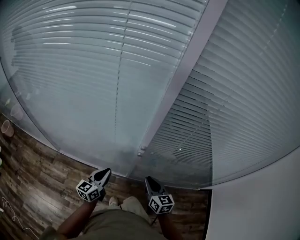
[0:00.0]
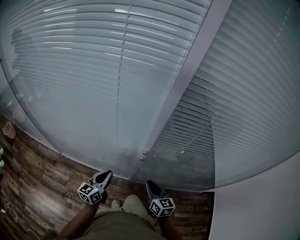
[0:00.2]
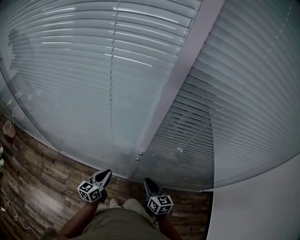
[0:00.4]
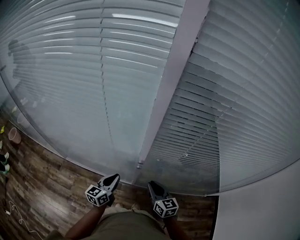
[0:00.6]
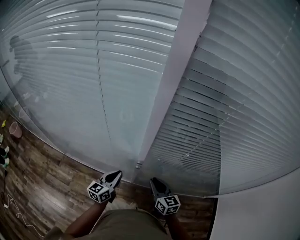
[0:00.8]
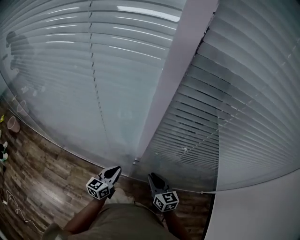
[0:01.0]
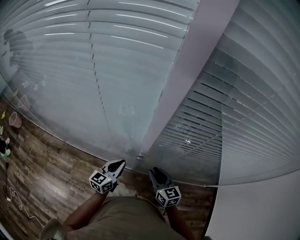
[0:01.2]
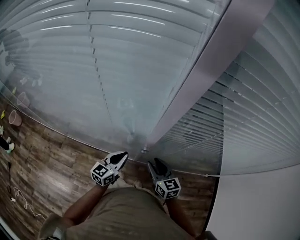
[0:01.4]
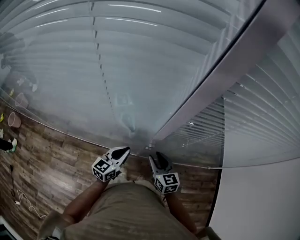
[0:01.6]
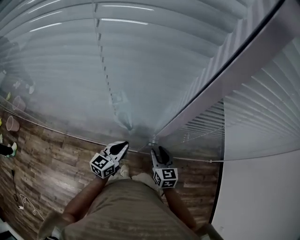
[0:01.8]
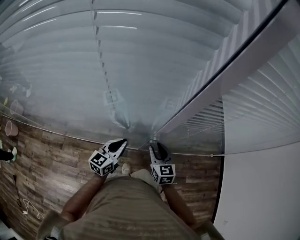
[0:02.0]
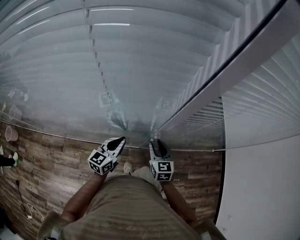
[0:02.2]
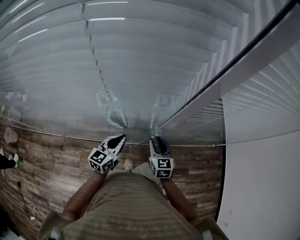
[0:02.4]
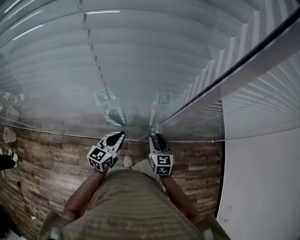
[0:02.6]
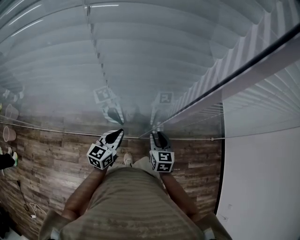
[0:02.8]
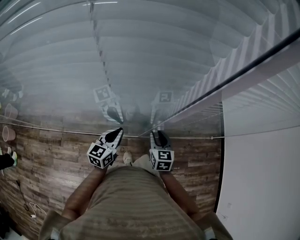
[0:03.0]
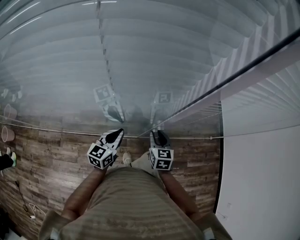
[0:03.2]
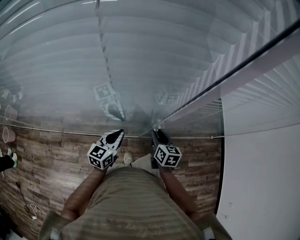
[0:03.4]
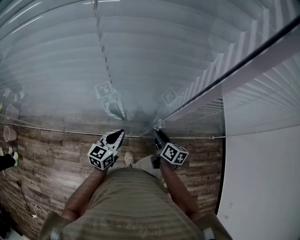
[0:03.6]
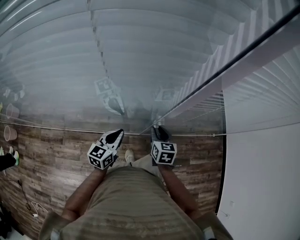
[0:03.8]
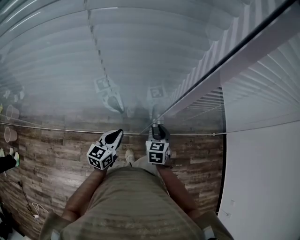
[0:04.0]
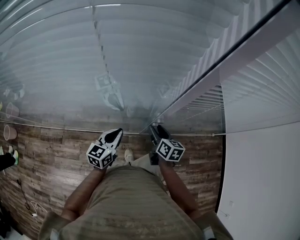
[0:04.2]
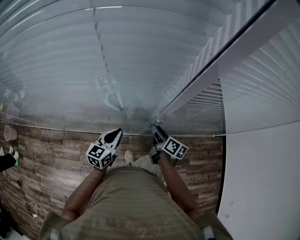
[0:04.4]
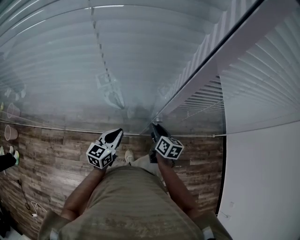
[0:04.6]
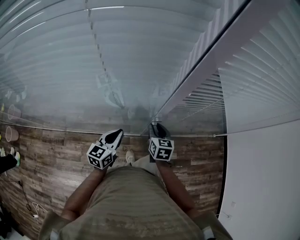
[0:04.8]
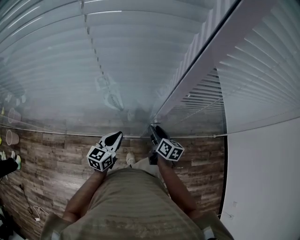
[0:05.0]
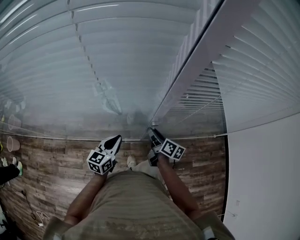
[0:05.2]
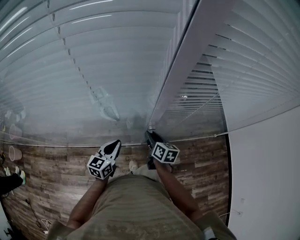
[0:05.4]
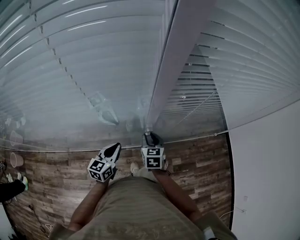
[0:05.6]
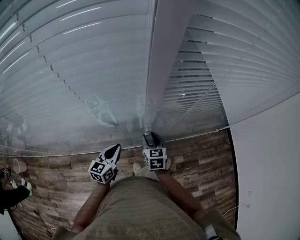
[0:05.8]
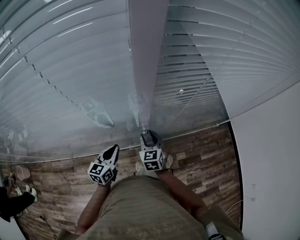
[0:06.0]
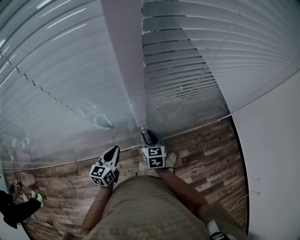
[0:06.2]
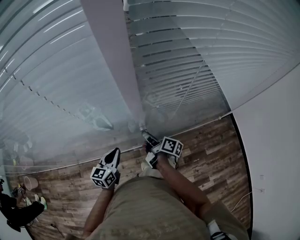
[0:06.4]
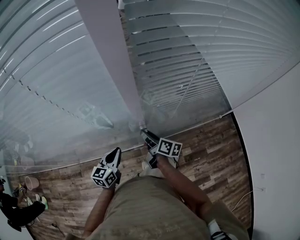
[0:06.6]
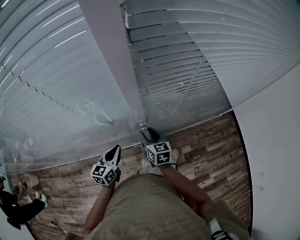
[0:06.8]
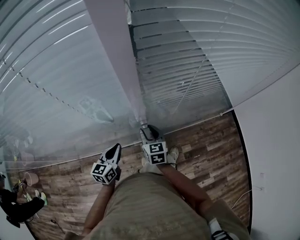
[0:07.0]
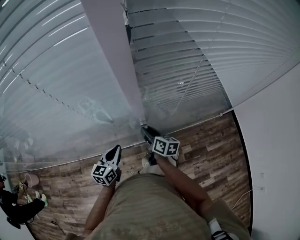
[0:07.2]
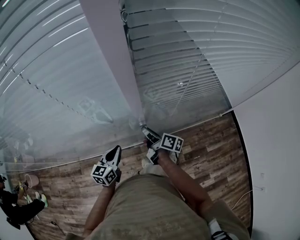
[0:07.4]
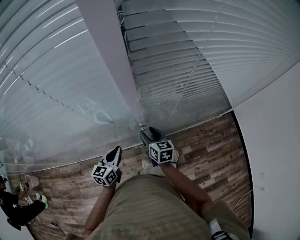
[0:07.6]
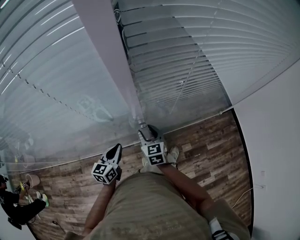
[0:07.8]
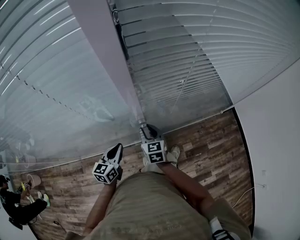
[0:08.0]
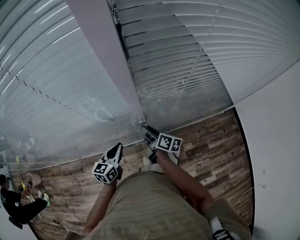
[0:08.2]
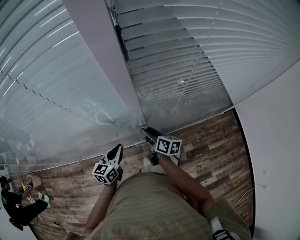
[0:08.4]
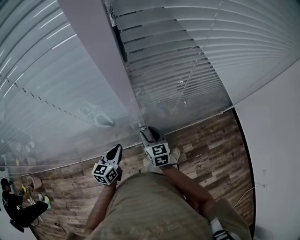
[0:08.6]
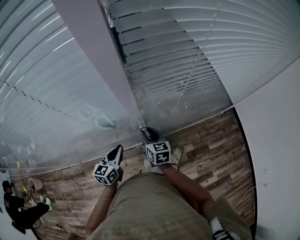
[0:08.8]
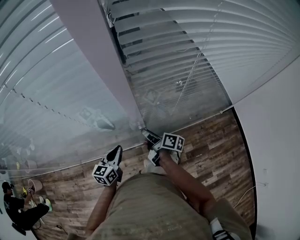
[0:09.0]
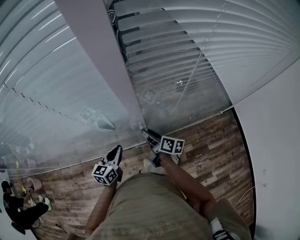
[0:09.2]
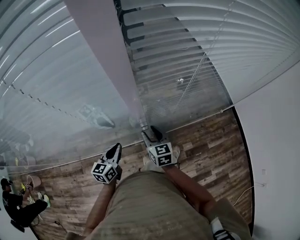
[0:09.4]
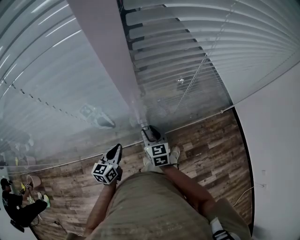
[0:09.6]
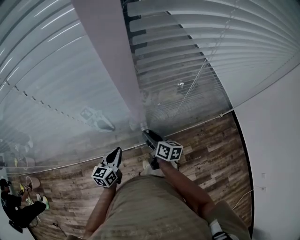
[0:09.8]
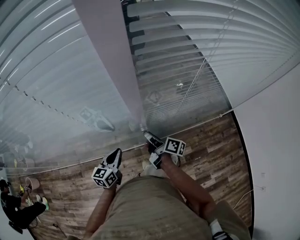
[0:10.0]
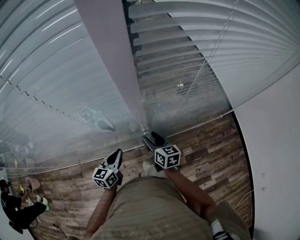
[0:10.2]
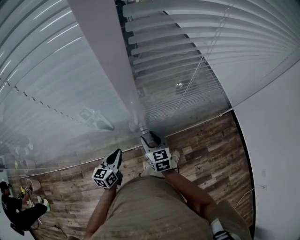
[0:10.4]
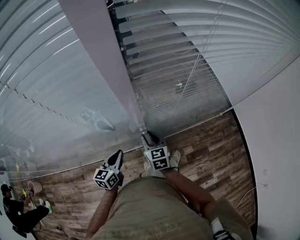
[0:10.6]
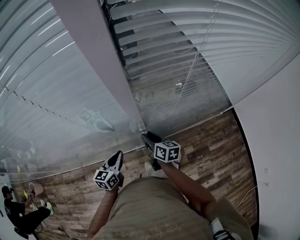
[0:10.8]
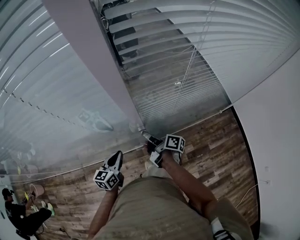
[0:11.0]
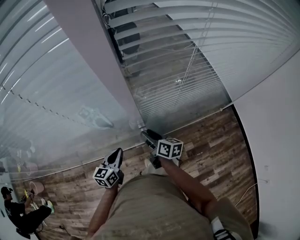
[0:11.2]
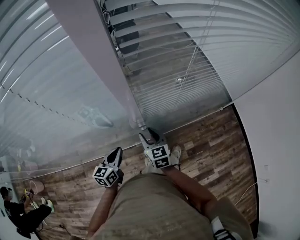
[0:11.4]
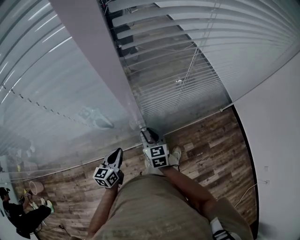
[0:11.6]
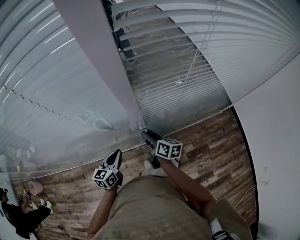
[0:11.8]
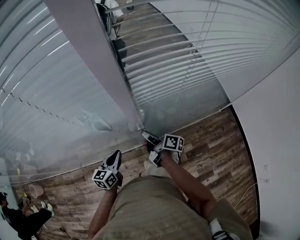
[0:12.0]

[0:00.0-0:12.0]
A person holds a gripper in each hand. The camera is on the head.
0:00.0 to 0:01.6: The two grippers go approximately 10 cm forward.
0:01.6 to 0:03.0: The left gripper is displaced forward and downward by some 10 cm. The right gripper is displaced downward and forward by some 10 cm, and rotates some 20 degrees.
0:03.0 to 0:04.4: The left gripper moves backward, roughly 5 cm. Meanwhile the right gripper twists about 50 degrees clockwise, seen from behind.
0:04.4 to 0:06.0: The right gripper rotates around the line of its fingers by about 50 degrees, counterclockwise from behind.
0:06.0 to 0:07.6: The right gripper rotates about 30 degrees.
0:07.6 to 0:09.0: The right gripper twists about 50 degrees clockwise, seen from behind.
0:09.0 to 0:10.4: The right gripper twists about 60 degrees counterclockwise, seen from behind.
0:10.4 to 0:12.0: The right gripper rolls clockwise, seen from behind, by about 60 degrees.

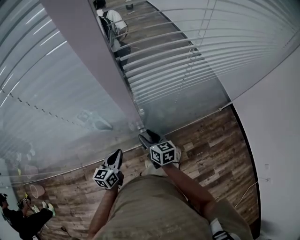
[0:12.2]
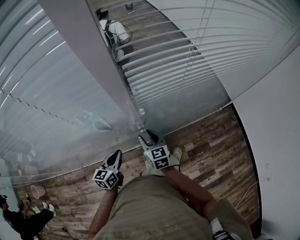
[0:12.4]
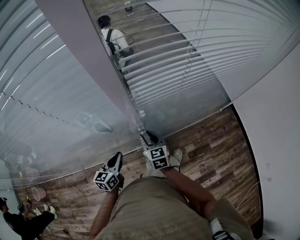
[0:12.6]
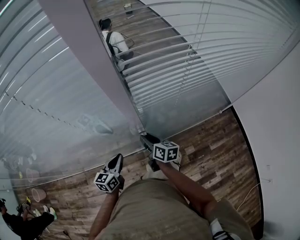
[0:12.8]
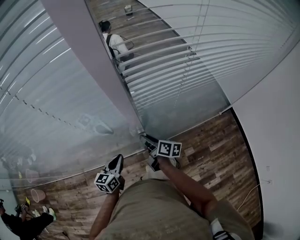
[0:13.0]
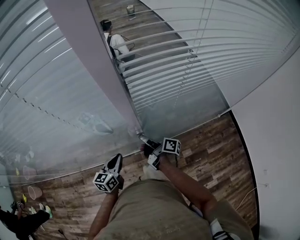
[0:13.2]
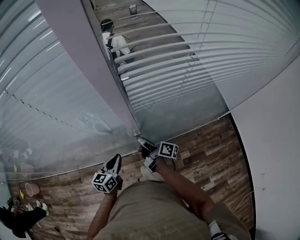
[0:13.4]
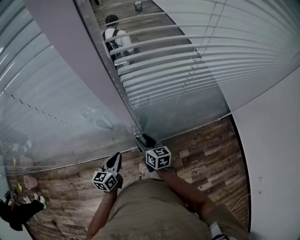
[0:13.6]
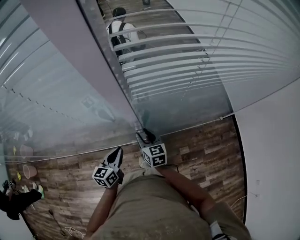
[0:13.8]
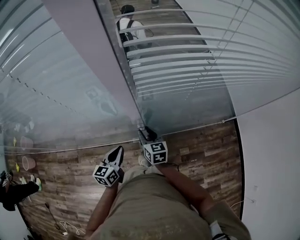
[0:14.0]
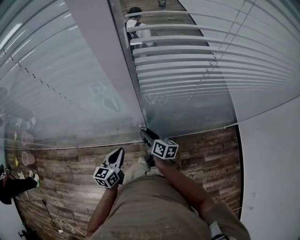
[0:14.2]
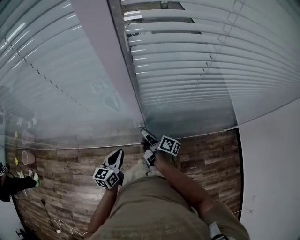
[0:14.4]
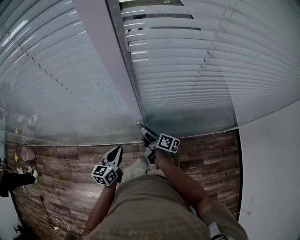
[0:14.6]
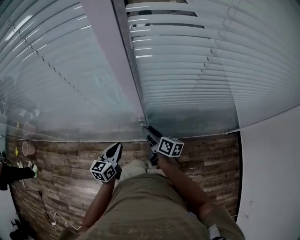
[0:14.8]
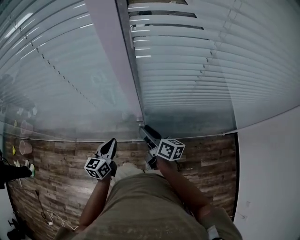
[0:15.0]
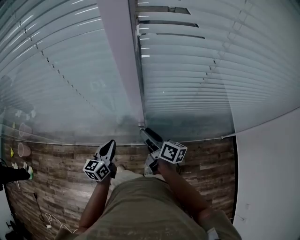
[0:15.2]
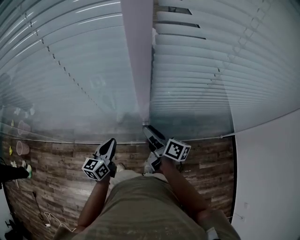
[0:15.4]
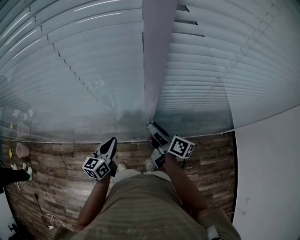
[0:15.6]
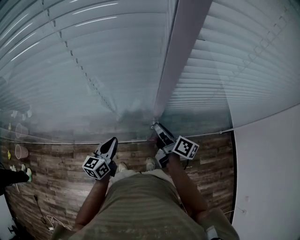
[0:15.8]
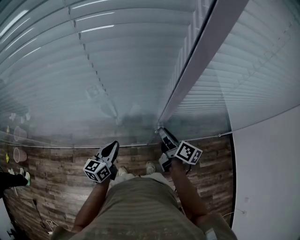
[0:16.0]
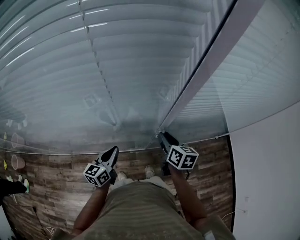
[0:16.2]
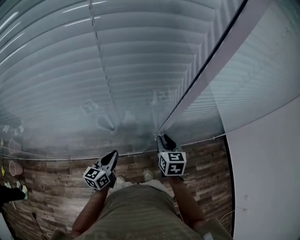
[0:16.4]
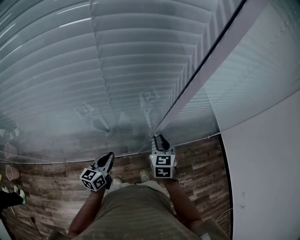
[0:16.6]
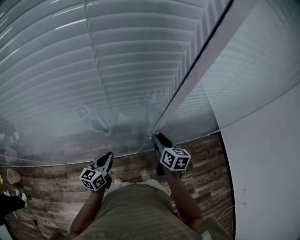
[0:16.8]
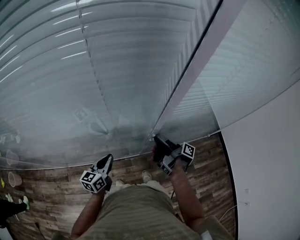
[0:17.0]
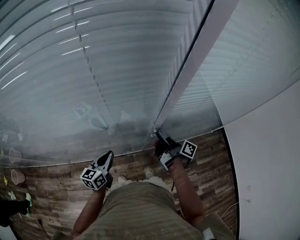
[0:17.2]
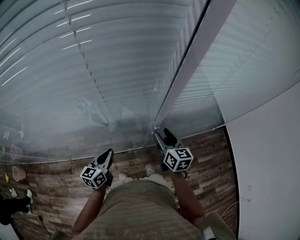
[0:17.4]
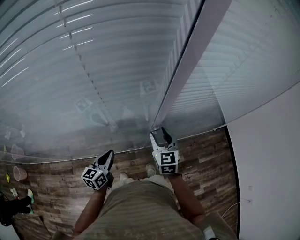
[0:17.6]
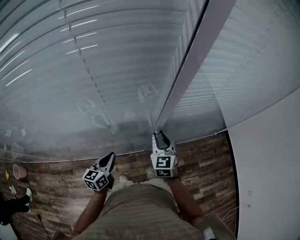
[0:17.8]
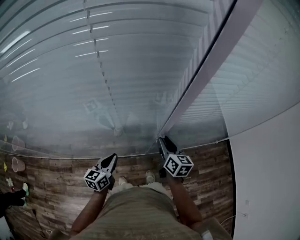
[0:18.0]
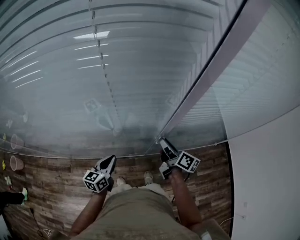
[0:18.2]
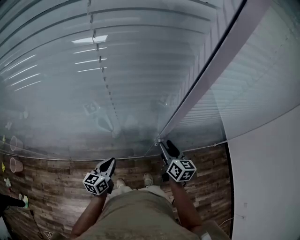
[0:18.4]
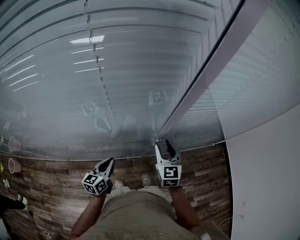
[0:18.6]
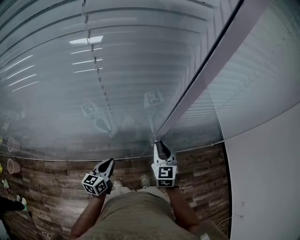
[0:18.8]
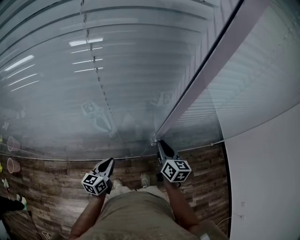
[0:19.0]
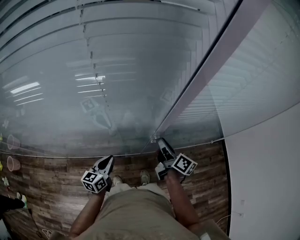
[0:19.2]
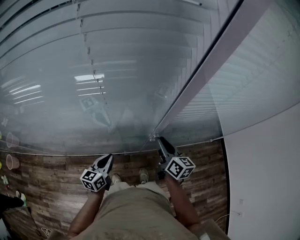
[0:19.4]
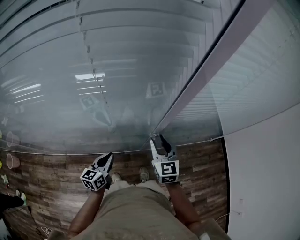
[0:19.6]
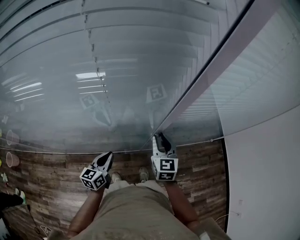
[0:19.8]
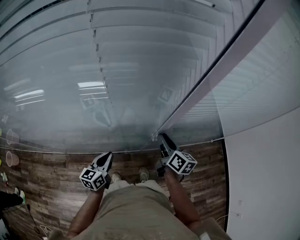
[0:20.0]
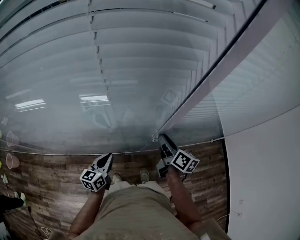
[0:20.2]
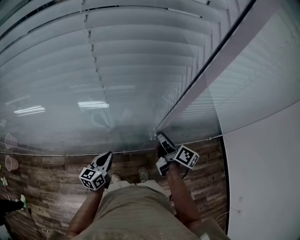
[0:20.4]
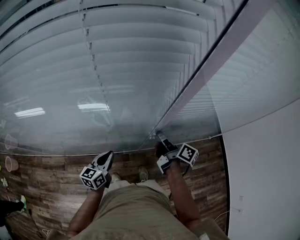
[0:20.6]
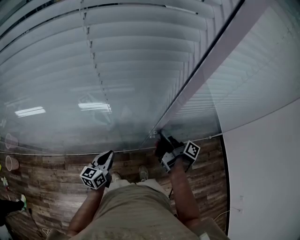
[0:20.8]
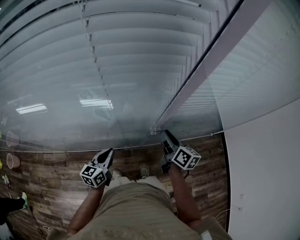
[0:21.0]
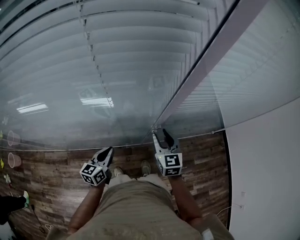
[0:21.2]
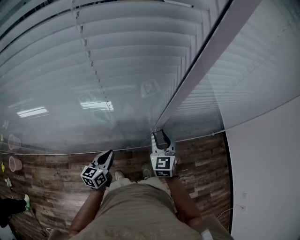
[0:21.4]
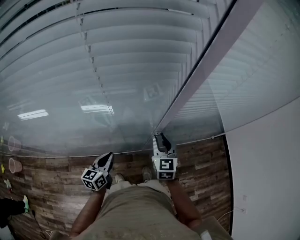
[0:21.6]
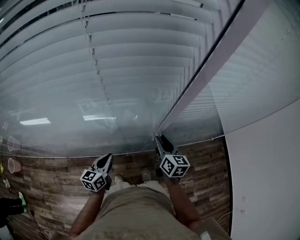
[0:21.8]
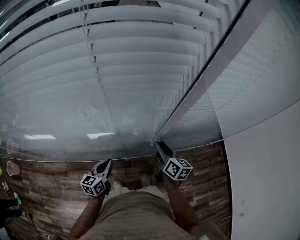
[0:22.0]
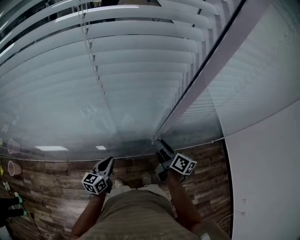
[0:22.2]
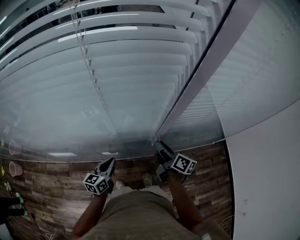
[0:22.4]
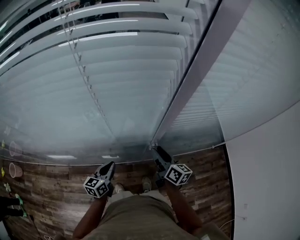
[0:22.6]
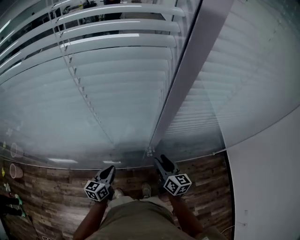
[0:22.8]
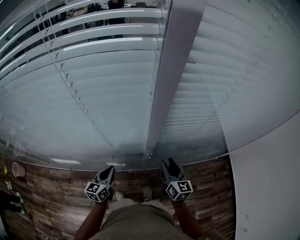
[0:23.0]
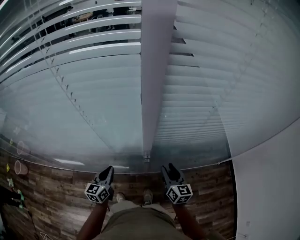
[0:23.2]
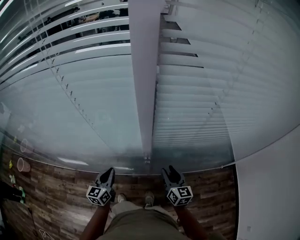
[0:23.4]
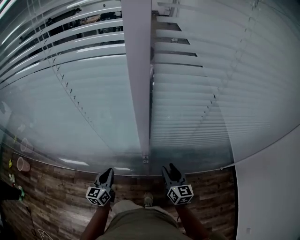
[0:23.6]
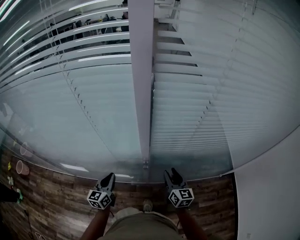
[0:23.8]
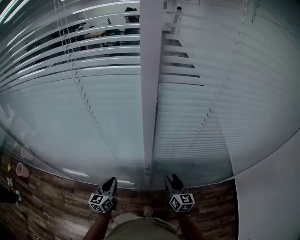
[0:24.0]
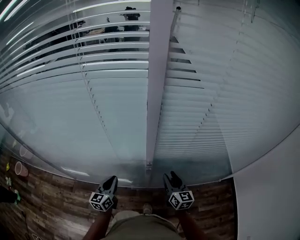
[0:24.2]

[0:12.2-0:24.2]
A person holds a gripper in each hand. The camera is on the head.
0:12.2 to 0:13.8: The left gripper travels to the right by about 5 cm.
0:13.8 to 0:15.2: The left gripper goes roughly 10 cm to the left and upward, while the right gripper shifts about 10 cm upward, and swivels approximately 40 degrees.
0:15.2 to 0:16.6: The right gripper turns by some 70 degrees; the left gripper changes place by roughly 5 cm.
0:16.6 to 0:18.2: The right gripper rotates around the line of its fingers by some 60 degrees, clockwise from behind, and opens, then closes again.
0:18.2 to 0:19.8: The right gripper rolls counterclockwise, seen from behind, by approximately 60 degrees.
0:19.8 to 0:21.2: The right gripper closes, then reopens.
0:21.2 to 0:22.6: The right gripper twists approximately 40 degrees clockwise, seen from behind.
0:22.6 to 0:24.2: The left gripper is displaced upward by approximately 5 cm. Meanwhile the right gripper heads to the right, covering some 10 cm, and rotates approximately 30 degrees.
